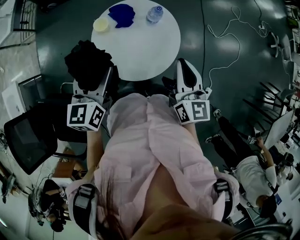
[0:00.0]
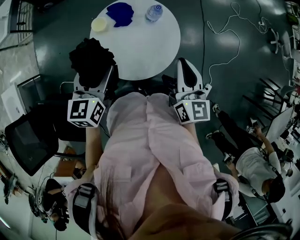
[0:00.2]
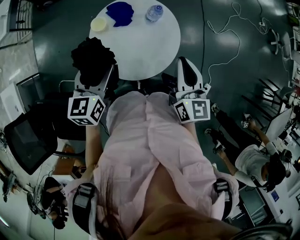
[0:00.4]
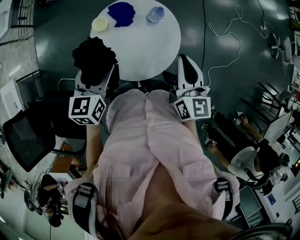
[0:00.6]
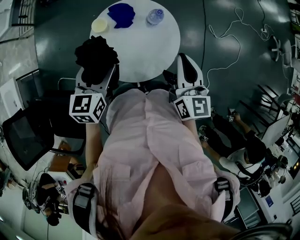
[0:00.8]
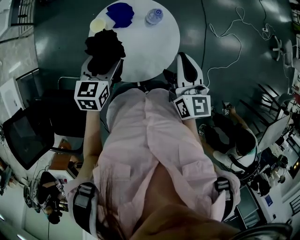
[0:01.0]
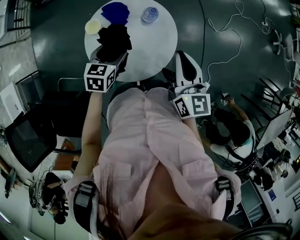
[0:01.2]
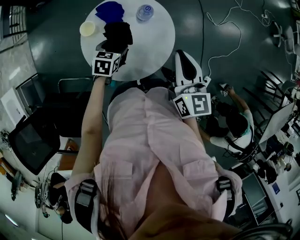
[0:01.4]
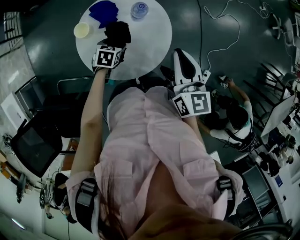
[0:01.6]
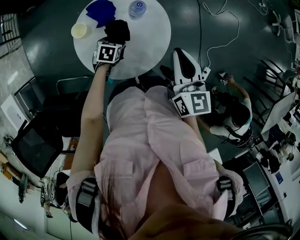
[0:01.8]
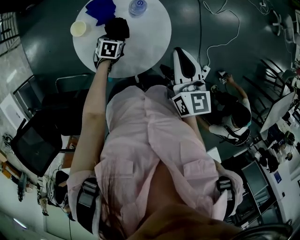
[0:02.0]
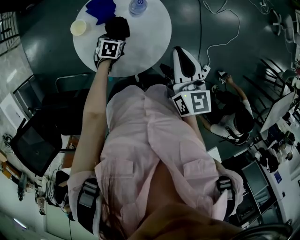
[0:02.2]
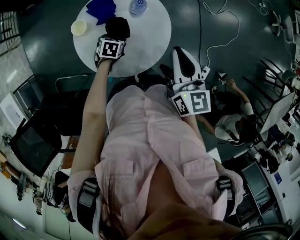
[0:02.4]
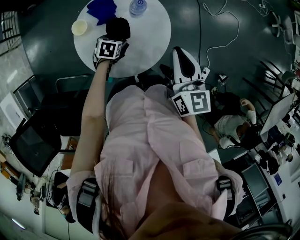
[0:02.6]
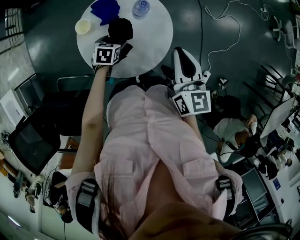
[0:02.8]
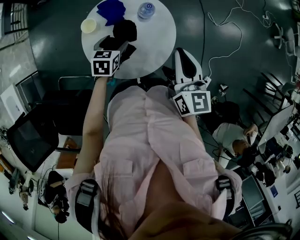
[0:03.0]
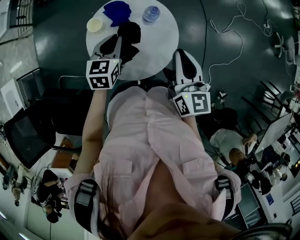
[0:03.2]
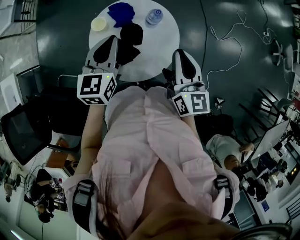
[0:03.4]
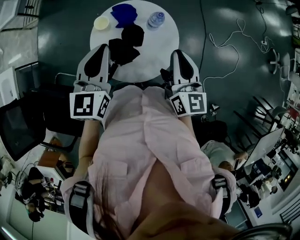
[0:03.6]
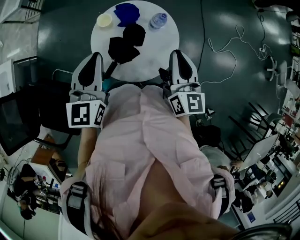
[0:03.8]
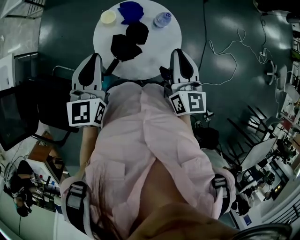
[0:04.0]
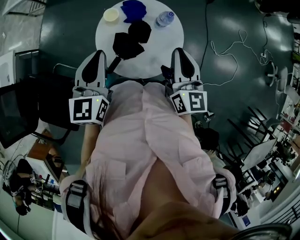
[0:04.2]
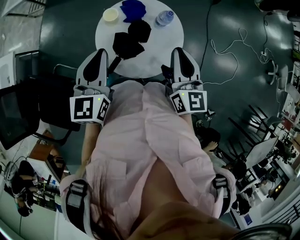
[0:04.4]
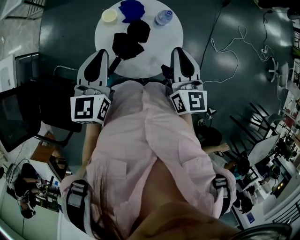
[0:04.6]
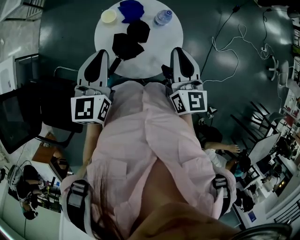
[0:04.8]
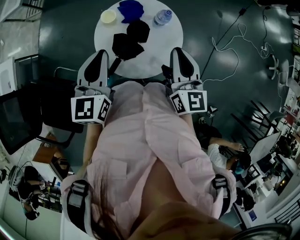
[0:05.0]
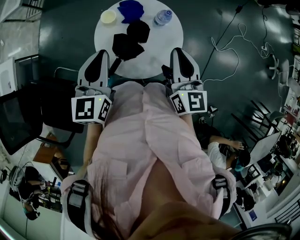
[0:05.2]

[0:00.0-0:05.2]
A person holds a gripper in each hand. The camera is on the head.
0:00.0 to 0:01.8: The right gripper is displaced forward by approximately 5 cm; the left gripper goes roughly 30 cm downward, and tips its fingers downward by roughly 40 degrees.
0:01.8 to 0:03.4: The left gripper is displaced upward by about 30 cm, points its fingers about 40 degrees further upward, and closes up.
0:03.4 to 0:05.2: The left gripper is displaced backward and to the left by approximately 10 cm.

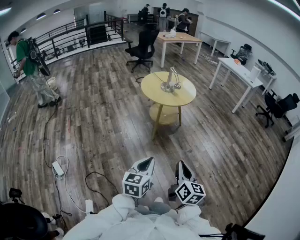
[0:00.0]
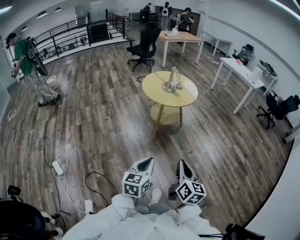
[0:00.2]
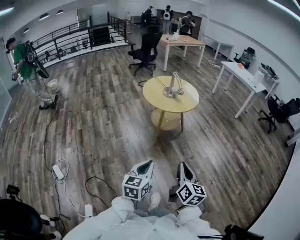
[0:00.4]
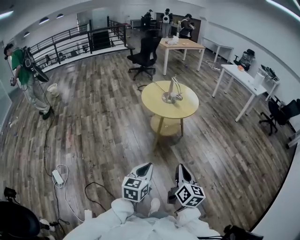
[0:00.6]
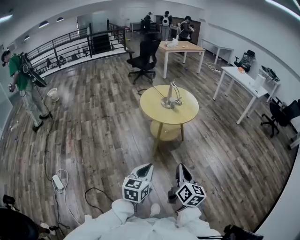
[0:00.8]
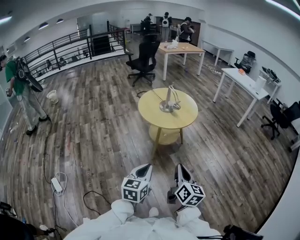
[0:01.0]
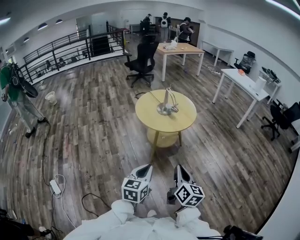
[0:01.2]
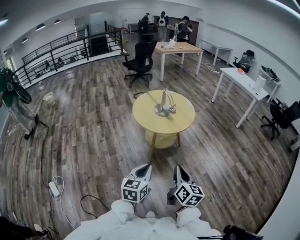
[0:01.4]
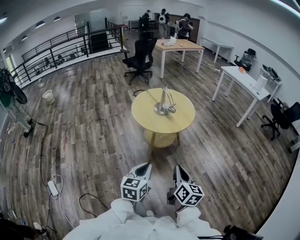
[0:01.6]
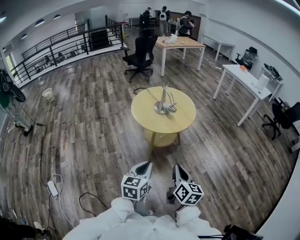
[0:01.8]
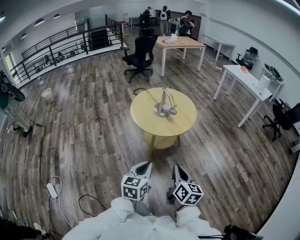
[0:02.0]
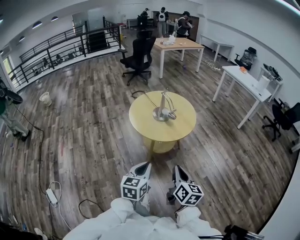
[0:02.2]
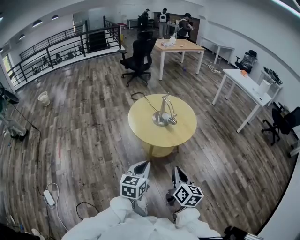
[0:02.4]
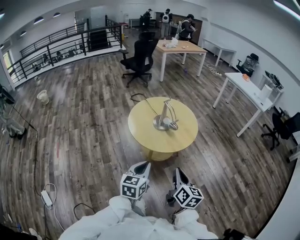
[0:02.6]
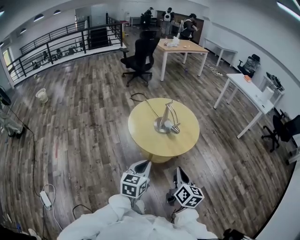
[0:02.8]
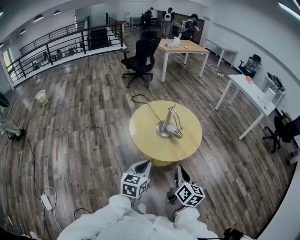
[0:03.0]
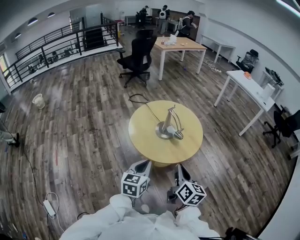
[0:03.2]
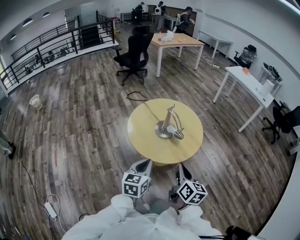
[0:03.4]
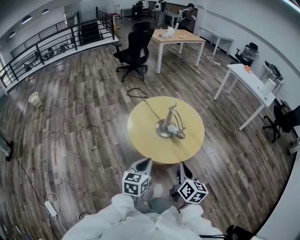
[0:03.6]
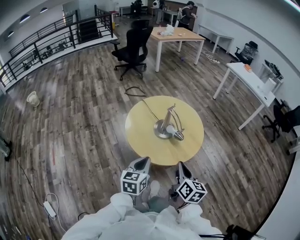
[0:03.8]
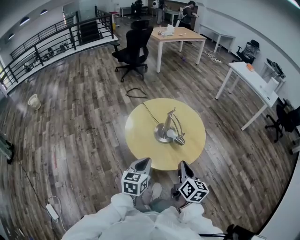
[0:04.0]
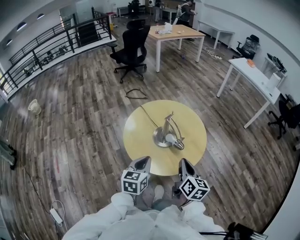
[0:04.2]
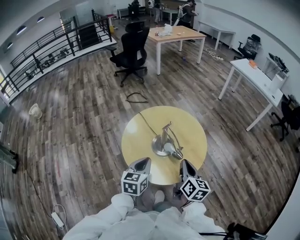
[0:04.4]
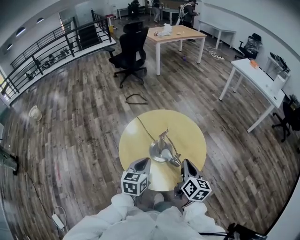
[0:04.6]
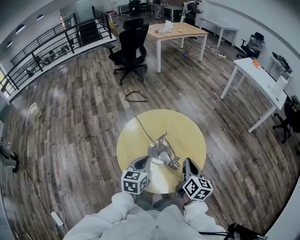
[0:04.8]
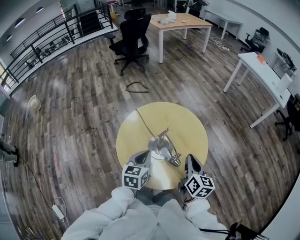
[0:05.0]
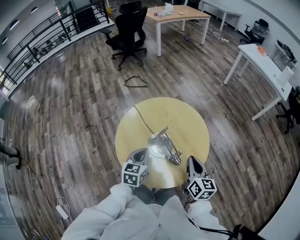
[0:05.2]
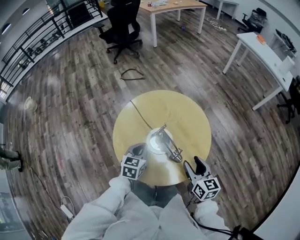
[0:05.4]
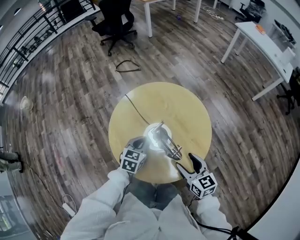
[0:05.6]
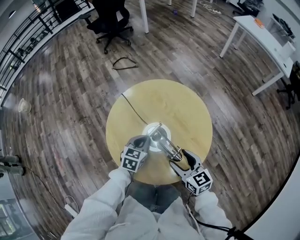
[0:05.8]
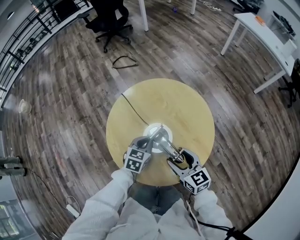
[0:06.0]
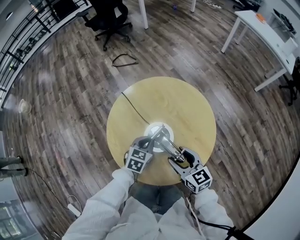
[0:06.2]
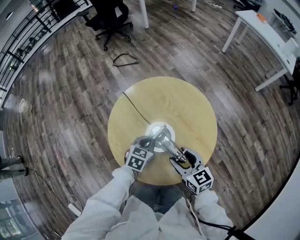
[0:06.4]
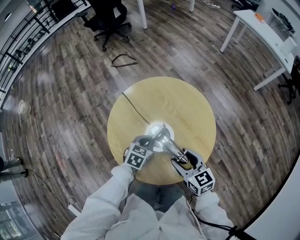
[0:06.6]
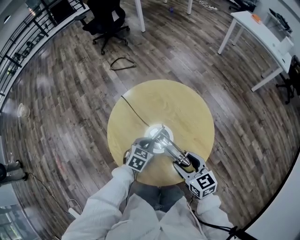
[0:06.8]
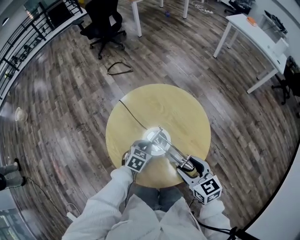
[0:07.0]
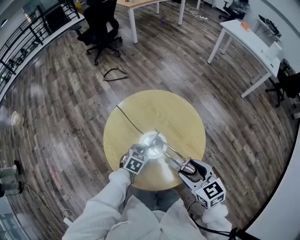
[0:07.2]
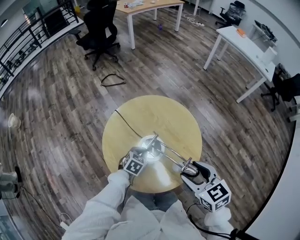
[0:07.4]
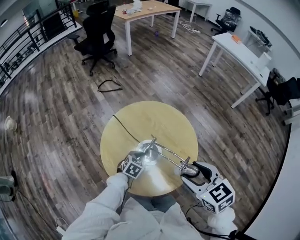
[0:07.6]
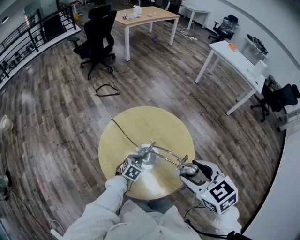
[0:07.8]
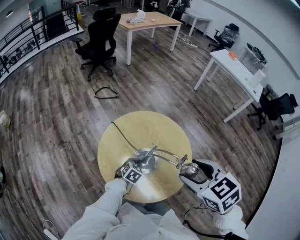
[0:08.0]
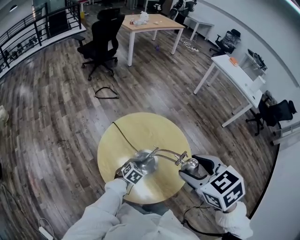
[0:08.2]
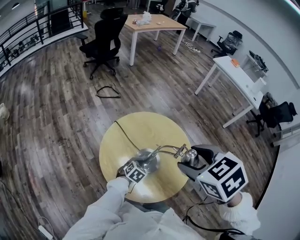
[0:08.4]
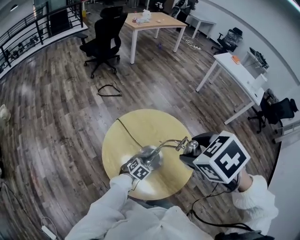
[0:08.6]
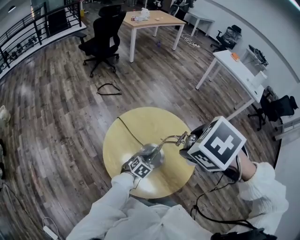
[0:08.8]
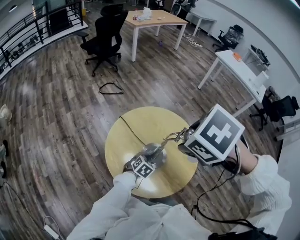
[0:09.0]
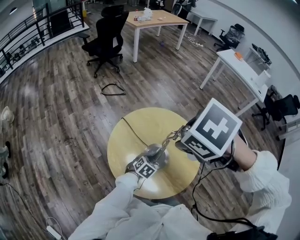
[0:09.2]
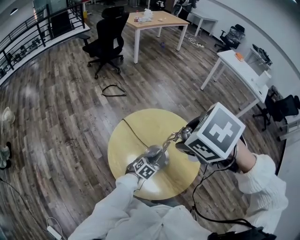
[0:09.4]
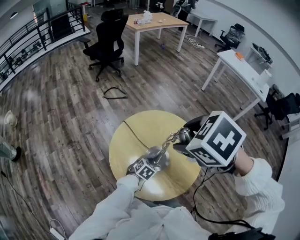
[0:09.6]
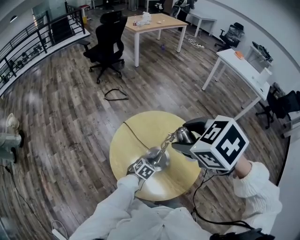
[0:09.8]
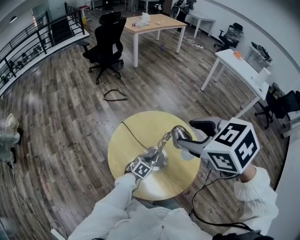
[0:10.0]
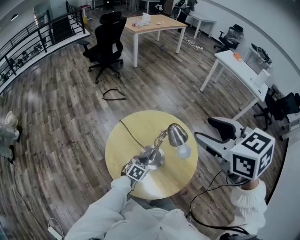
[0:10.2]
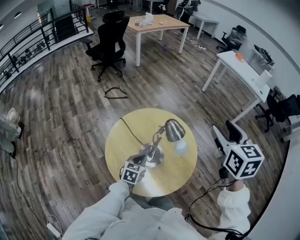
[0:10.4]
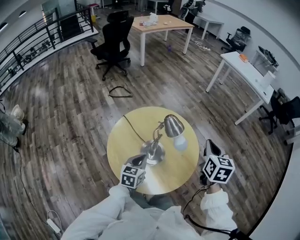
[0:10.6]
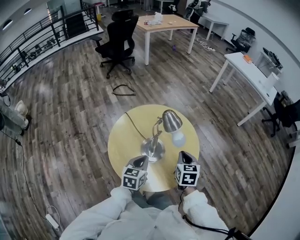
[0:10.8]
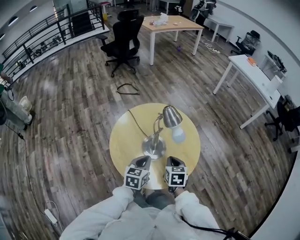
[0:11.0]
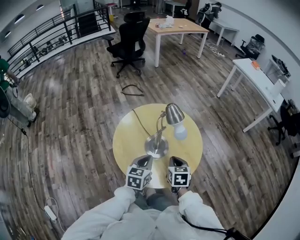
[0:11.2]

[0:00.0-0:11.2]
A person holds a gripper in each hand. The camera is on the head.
0:00.0 to 0:01.6: Both grippers travel together forward, roughly 30 cm.
0:01.6 to 0:03.2: The two grippers go roughly 30 cm forward.
0:03.2 to 0:04.8: Both grippers travel together forward, about 30 cm.
0:04.8 to 0:06.4: The left gripper is displaced downward and forward by some 20 cm, and changes its angle by about 30 degrees. The right gripper travels downward and to the left by about 15 cm, swivels some 30 degrees, and opens.
0:06.4 to 0:08.0: The right gripper goes approximately 25 cm upward, and swivels roughly 30 degrees.
0:08.0 to 0:09.6: The right gripper shifts by about 15 cm, and swivels some 30 degrees.
0:09.6 to 0:11.2: The right gripper heads downward, covering some 30 cm, swivels roughly 40 degrees, and closes up; the left gripper goes some 15 cm upward and backward, and changes its angle by about 40 degrees.

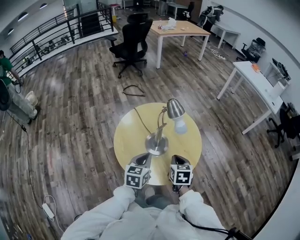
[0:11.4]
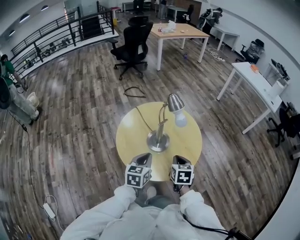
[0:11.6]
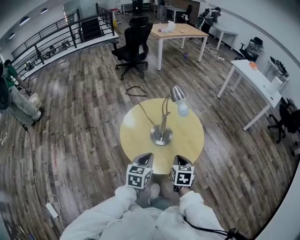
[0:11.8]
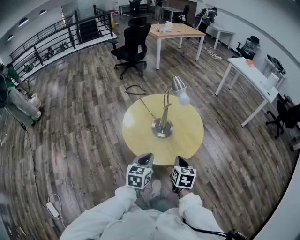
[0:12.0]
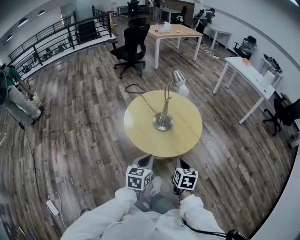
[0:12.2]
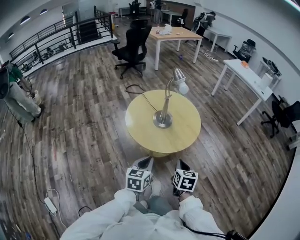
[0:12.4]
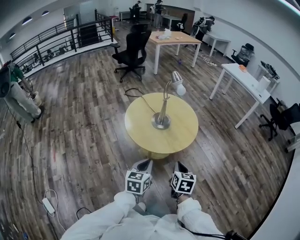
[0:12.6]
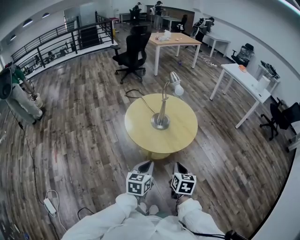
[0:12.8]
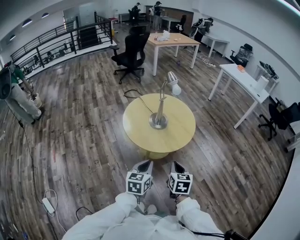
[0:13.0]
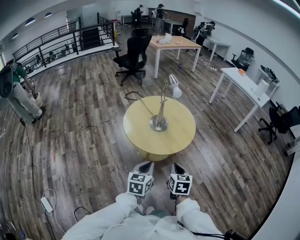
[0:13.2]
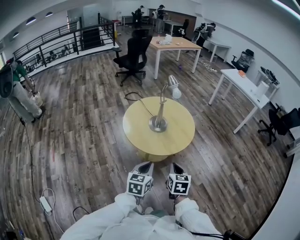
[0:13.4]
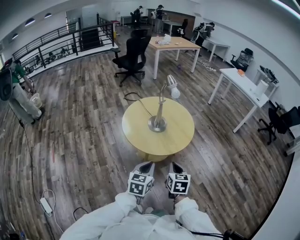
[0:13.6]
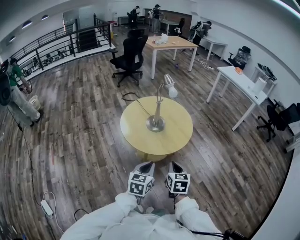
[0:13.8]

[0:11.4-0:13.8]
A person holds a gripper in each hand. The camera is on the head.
0:11.4 to 0:12.6: The grippers both shift backward by about 30 cm.
0:12.6 to 0:13.8: The left gripper heads to the right, covering approximately 5 cm.

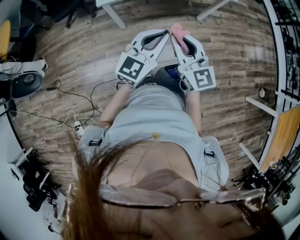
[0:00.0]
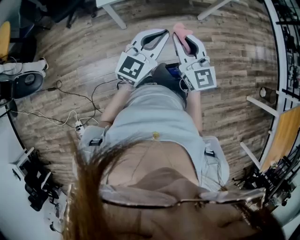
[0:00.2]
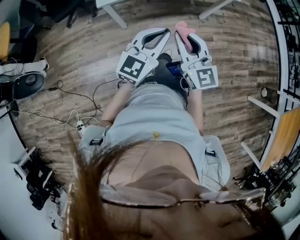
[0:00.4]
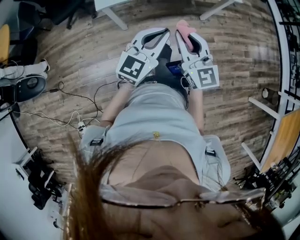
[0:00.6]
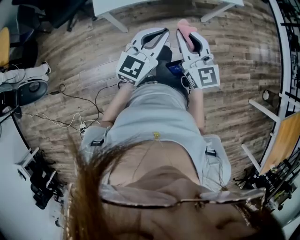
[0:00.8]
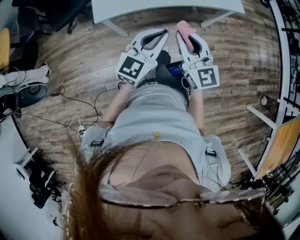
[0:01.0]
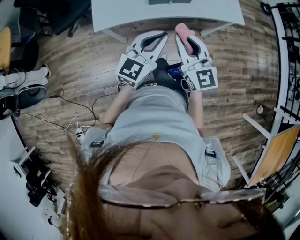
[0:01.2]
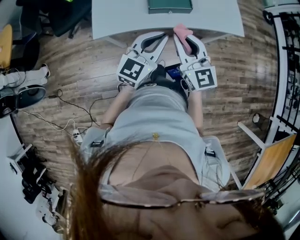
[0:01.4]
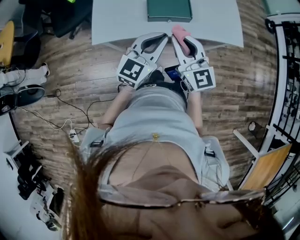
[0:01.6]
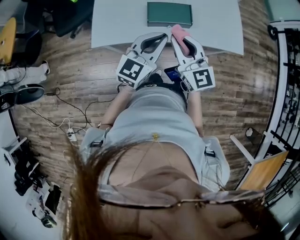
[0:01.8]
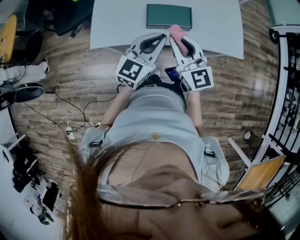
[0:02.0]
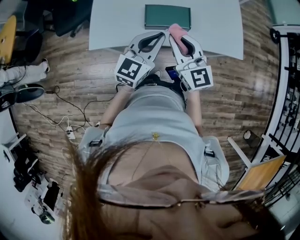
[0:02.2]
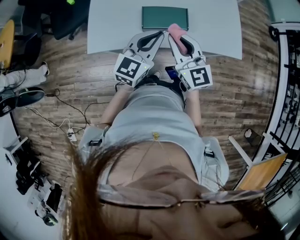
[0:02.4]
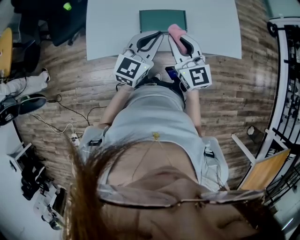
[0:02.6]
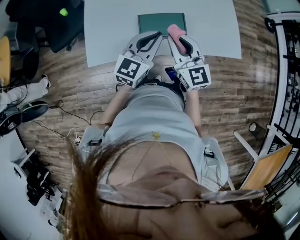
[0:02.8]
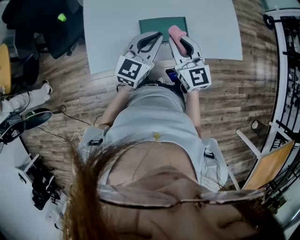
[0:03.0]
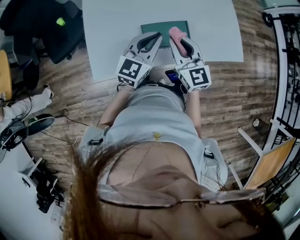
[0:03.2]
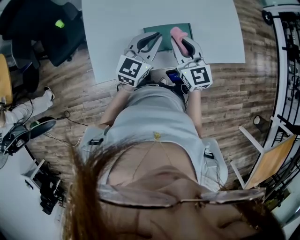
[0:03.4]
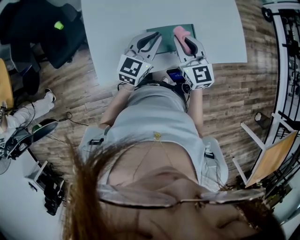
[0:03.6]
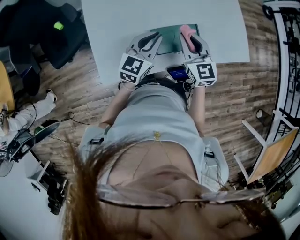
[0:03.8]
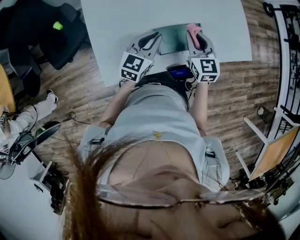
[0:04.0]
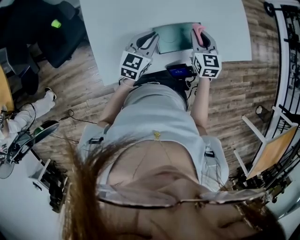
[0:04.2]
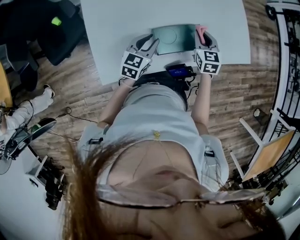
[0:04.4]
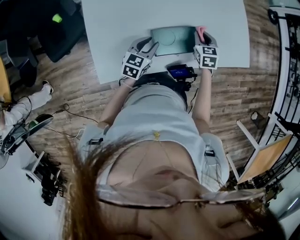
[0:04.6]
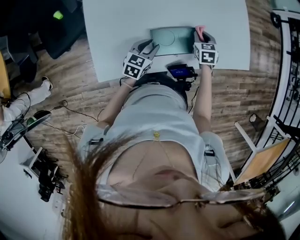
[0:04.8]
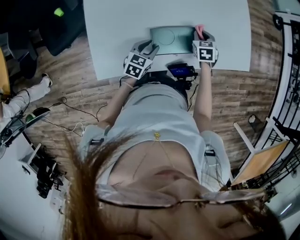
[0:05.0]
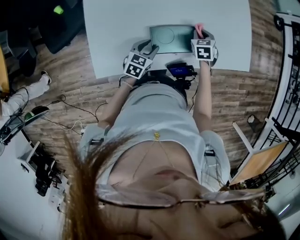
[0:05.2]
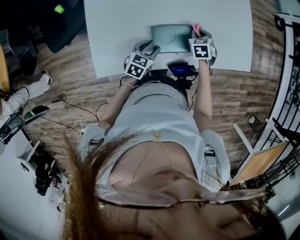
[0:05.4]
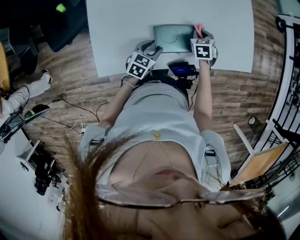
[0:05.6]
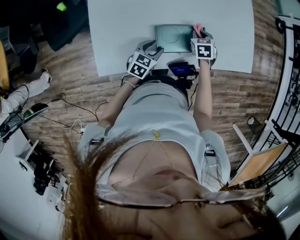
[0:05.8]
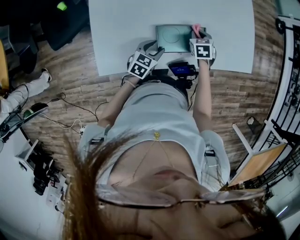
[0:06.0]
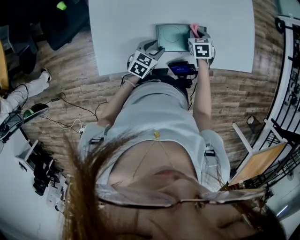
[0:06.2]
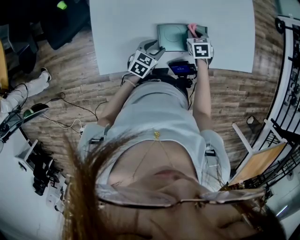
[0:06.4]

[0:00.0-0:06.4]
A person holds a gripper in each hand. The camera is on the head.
0:00.0 to 0:01.6: The two grippers go about 30 cm forward.
0:01.6 to 0:03.2: The grippers both shift forward by some 20 cm.
0:03.2 to 0:04.8: The right gripper is displaced downward and forward by roughly 25 cm, and tilts its fingers roughly 40 degrees downward. Meanwhile the left gripper shifts about 20 cm downward, changes its angle by approximately 30 degrees, and opens.
0:04.8 to 0:06.4: The left gripper moves roughly 5 cm. Meanwhile the right gripper heads to the left, covering approximately 5 cm.
